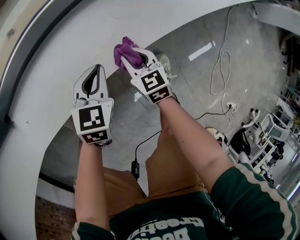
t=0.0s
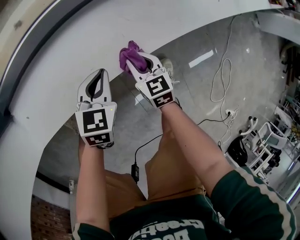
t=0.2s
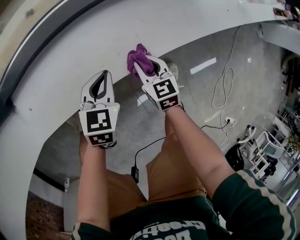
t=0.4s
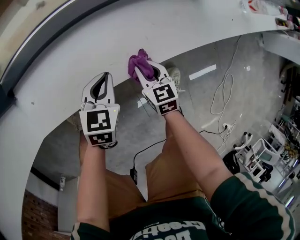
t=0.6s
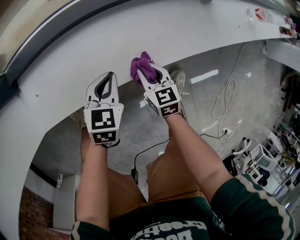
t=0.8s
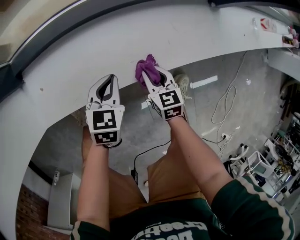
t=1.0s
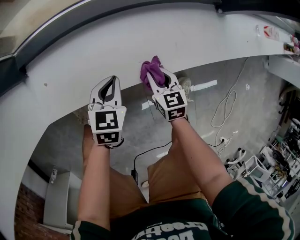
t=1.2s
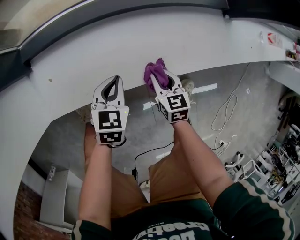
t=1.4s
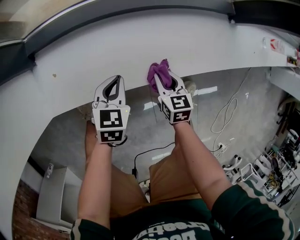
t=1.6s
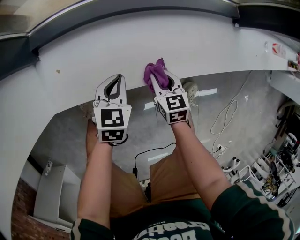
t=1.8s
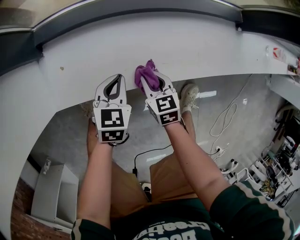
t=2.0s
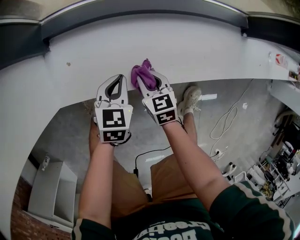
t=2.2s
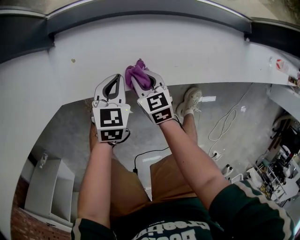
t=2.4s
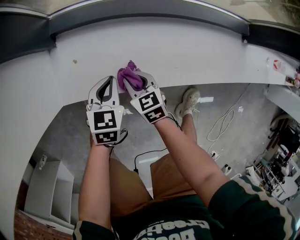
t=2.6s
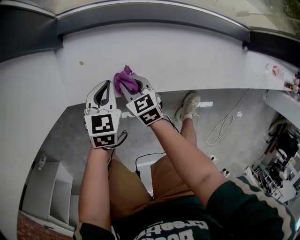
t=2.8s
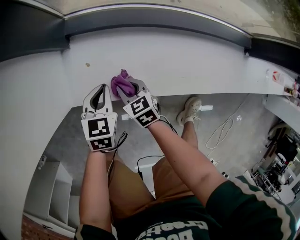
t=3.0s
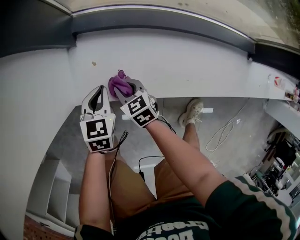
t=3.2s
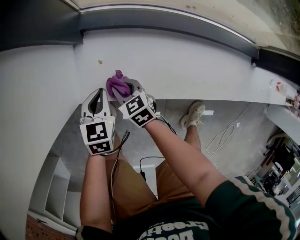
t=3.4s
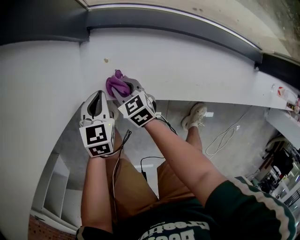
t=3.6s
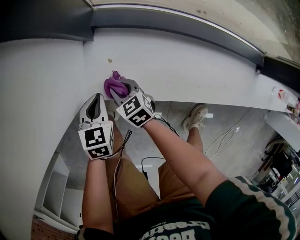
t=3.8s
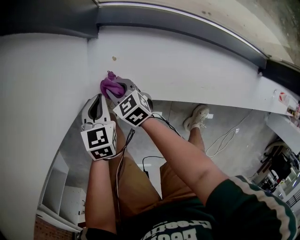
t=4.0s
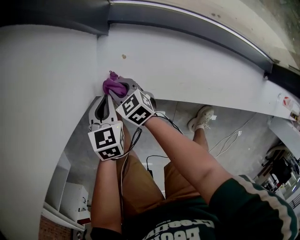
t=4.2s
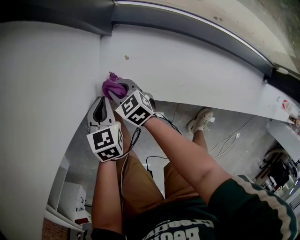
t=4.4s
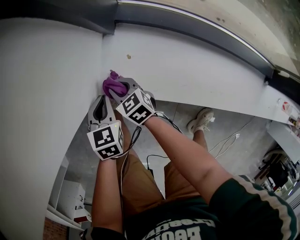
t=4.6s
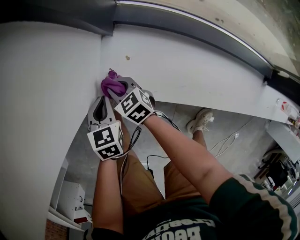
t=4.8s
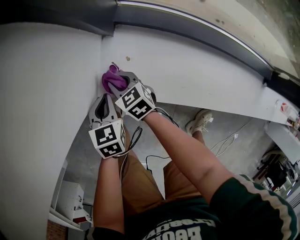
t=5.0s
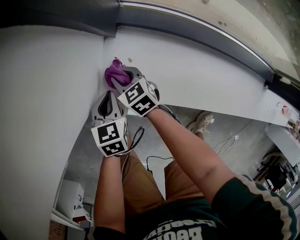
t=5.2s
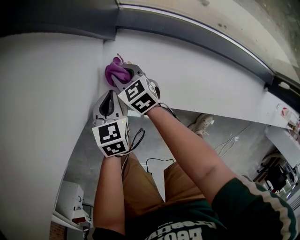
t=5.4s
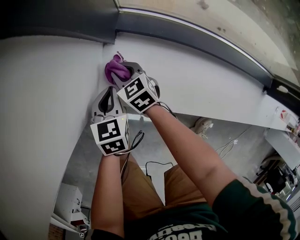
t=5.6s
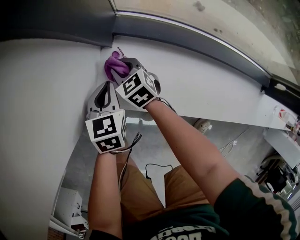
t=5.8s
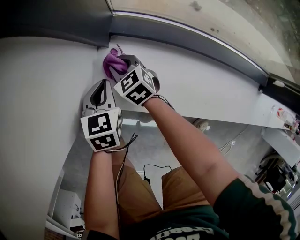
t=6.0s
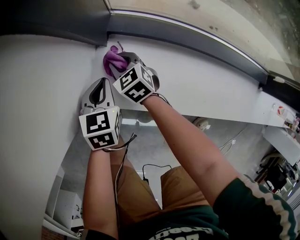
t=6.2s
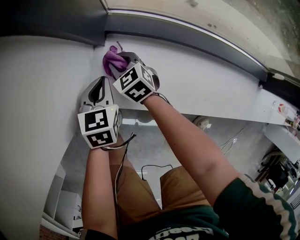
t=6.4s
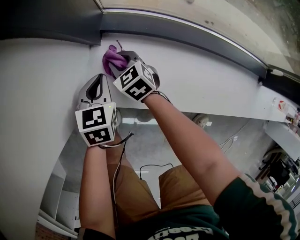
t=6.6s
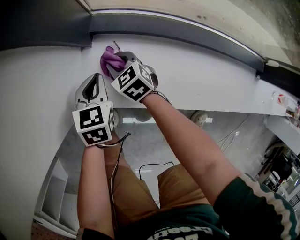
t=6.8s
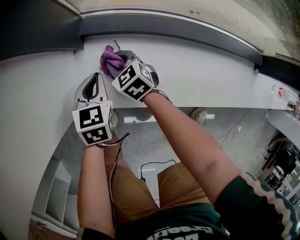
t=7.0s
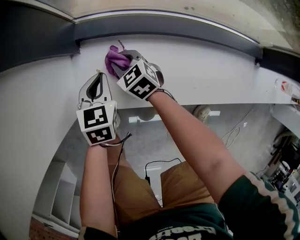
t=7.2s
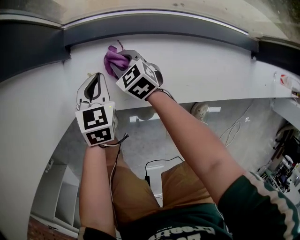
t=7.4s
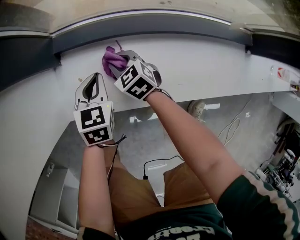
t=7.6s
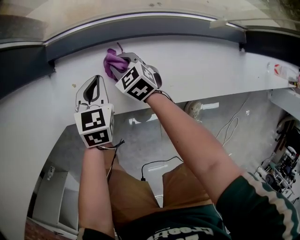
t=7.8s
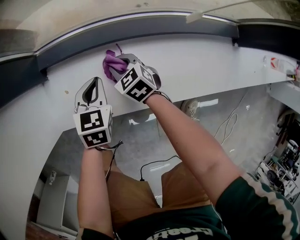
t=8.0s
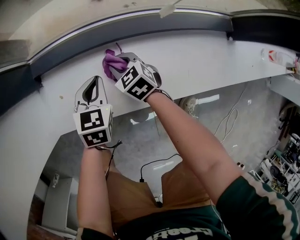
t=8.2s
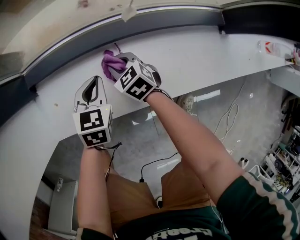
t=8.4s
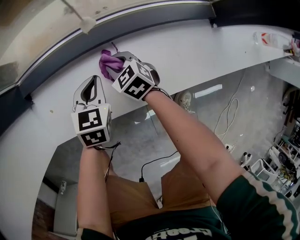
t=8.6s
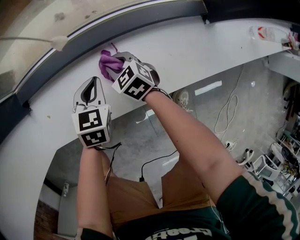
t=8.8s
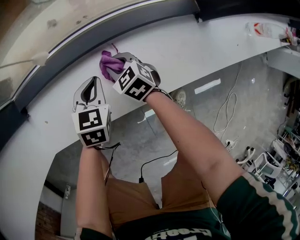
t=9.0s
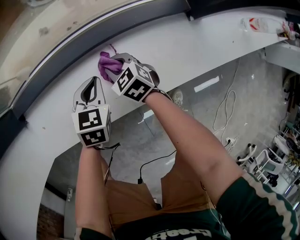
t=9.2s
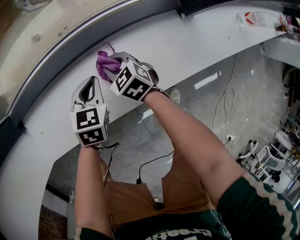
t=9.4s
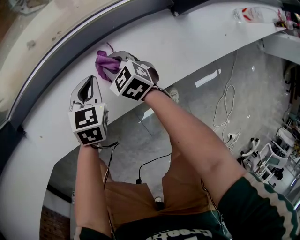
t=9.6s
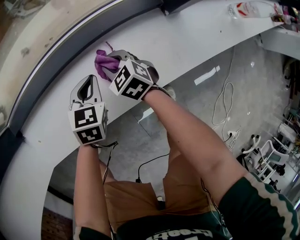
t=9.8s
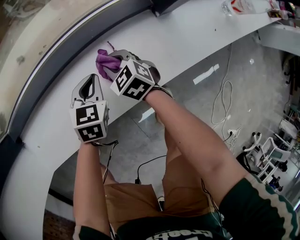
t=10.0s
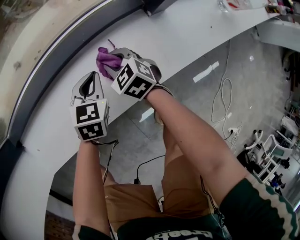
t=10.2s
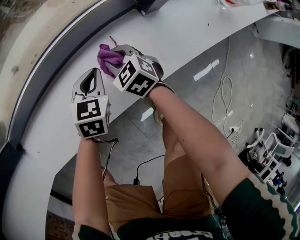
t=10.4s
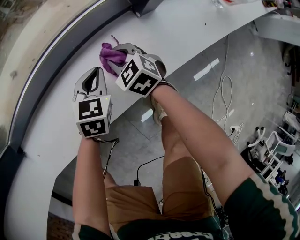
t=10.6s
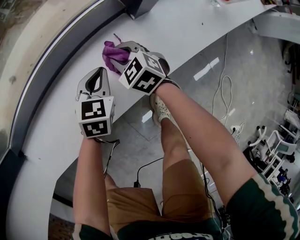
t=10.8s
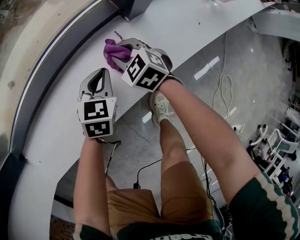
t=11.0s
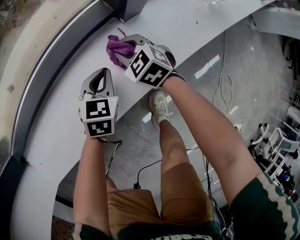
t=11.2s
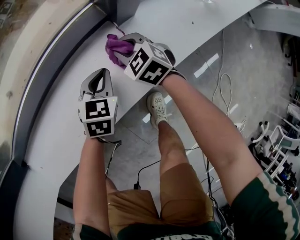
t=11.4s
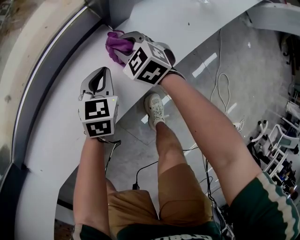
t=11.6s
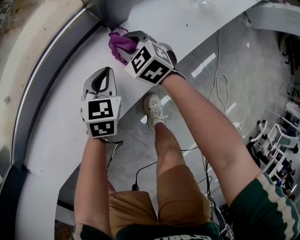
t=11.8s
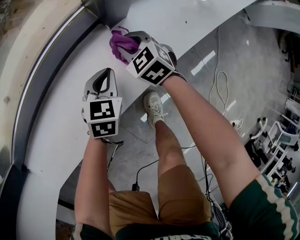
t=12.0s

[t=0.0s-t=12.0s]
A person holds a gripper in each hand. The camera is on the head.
t=0.0s to t=1.6s: Both grippers travel together to the left, roughly 15 cm.
t=1.6s to t=3.0s: The right gripper ends up roughly 30 cm from where it was, and changes its angle by roughly 30 degrees; the left gripper ends up about 20 cm from where it was.
t=3.0s to t=4.4s: The right gripper moves about 20 cm, and rotates about 20 degrees. Meanwhile the left gripper moves some 15 cm, and rotates some 20 degrees.
t=4.4s to t=6.0s: The left gripper moves to the right and forward, approximately 10 cm; the right gripper heads forward and to the right, covering roughly 15 cm.
t=6.0s to t=7.6s: The left gripper heads to the right, covering approximately 15 cm; the right gripper shifts approximately 20 cm to the right and backward.
t=7.6s to t=9.0s: The grippers both shift to the right by about 25 cm.
t=9.0s to t=10.4s: The two grippers go about 20 cm to the right.
t=10.4s to t=12.0s: The two grippers go roughly 15 cm to the right.

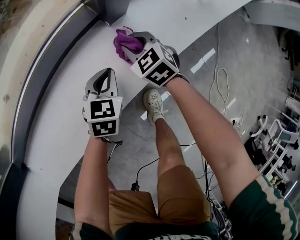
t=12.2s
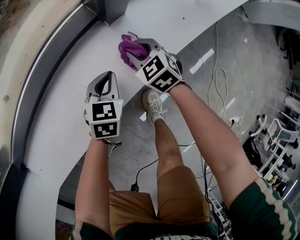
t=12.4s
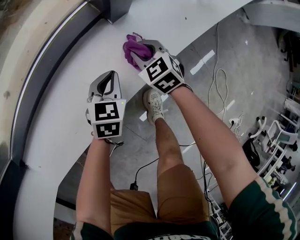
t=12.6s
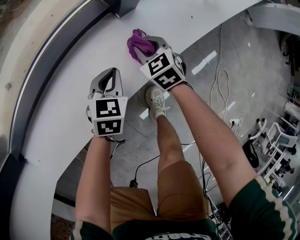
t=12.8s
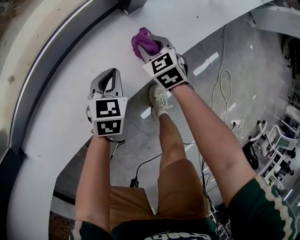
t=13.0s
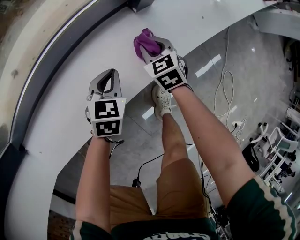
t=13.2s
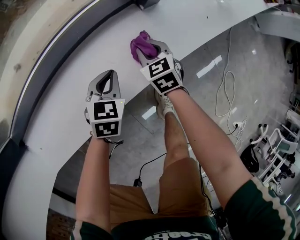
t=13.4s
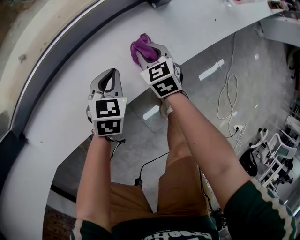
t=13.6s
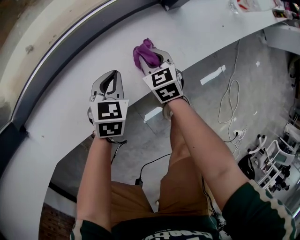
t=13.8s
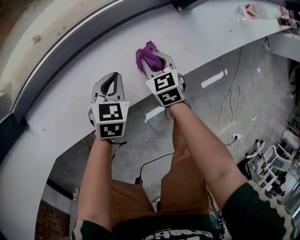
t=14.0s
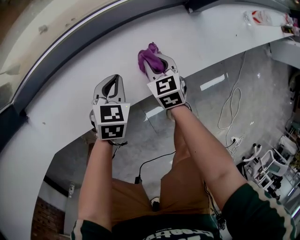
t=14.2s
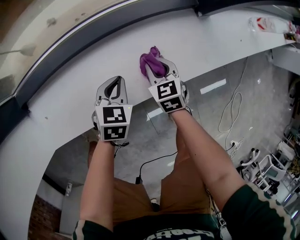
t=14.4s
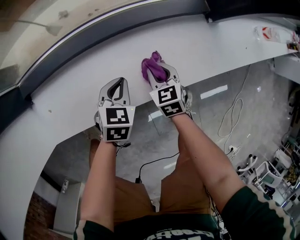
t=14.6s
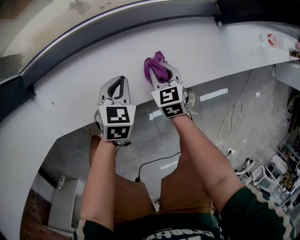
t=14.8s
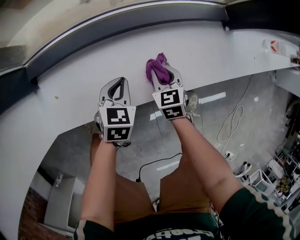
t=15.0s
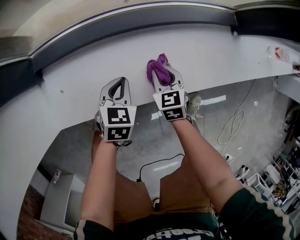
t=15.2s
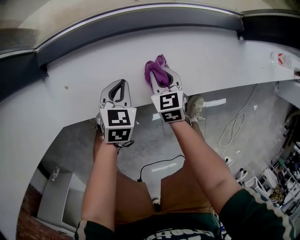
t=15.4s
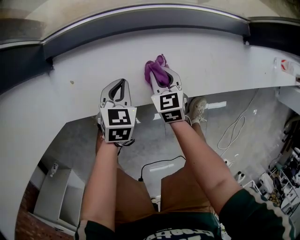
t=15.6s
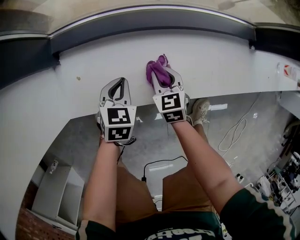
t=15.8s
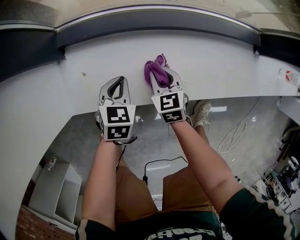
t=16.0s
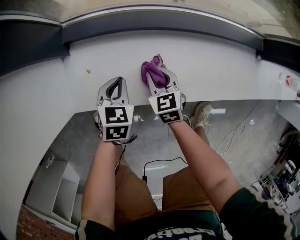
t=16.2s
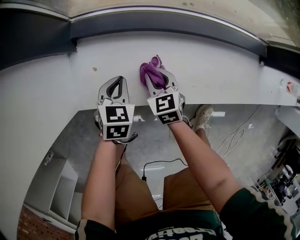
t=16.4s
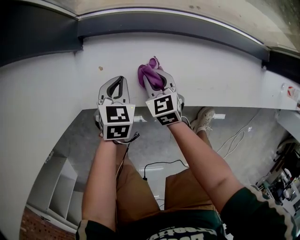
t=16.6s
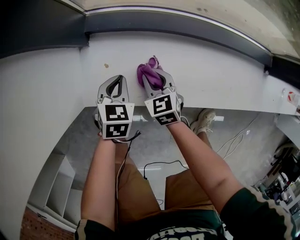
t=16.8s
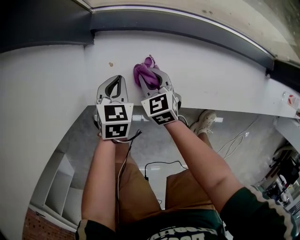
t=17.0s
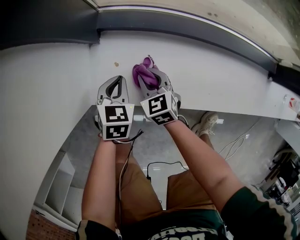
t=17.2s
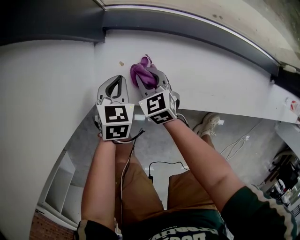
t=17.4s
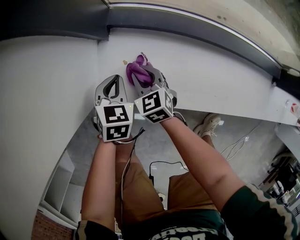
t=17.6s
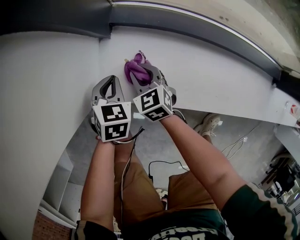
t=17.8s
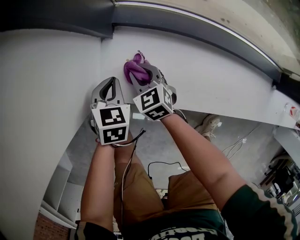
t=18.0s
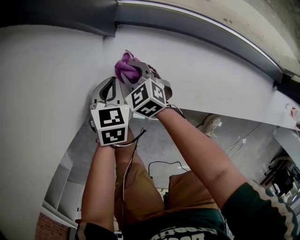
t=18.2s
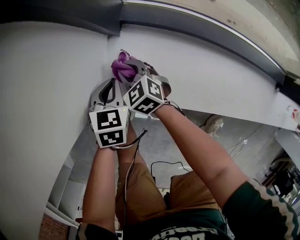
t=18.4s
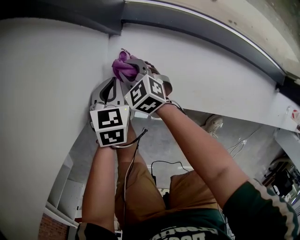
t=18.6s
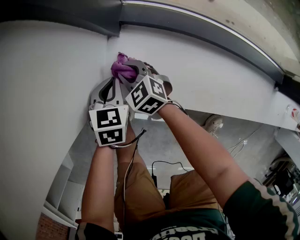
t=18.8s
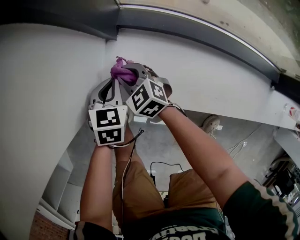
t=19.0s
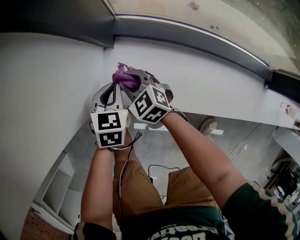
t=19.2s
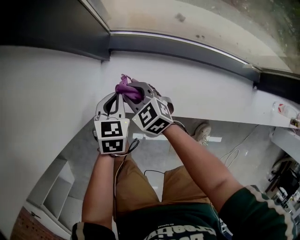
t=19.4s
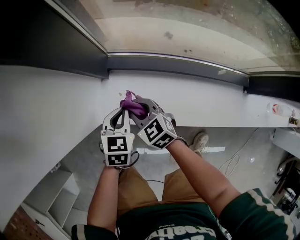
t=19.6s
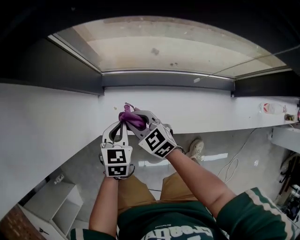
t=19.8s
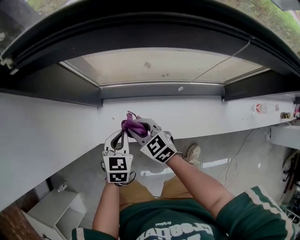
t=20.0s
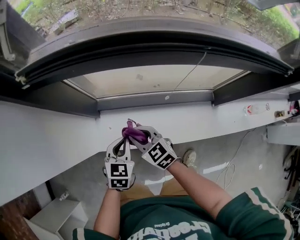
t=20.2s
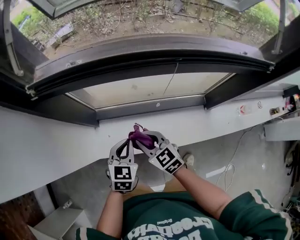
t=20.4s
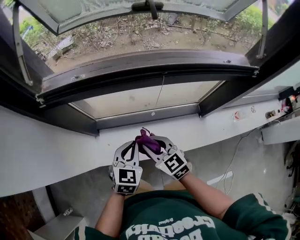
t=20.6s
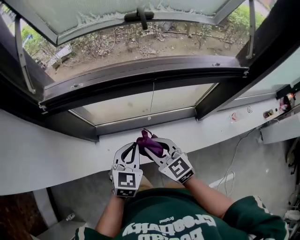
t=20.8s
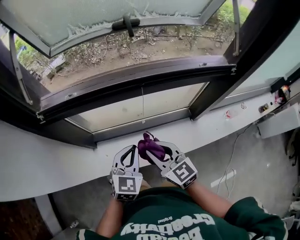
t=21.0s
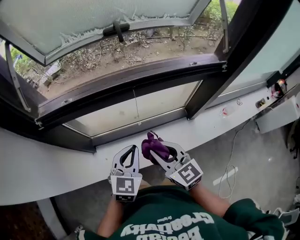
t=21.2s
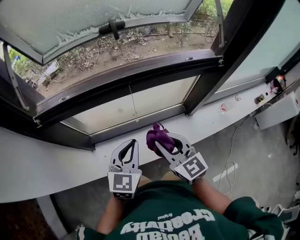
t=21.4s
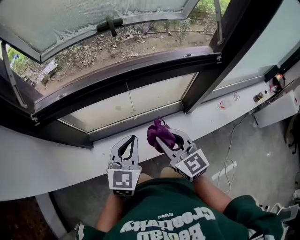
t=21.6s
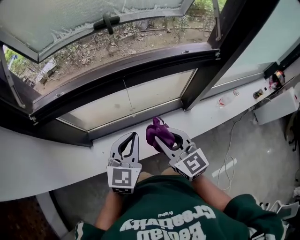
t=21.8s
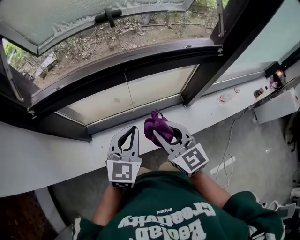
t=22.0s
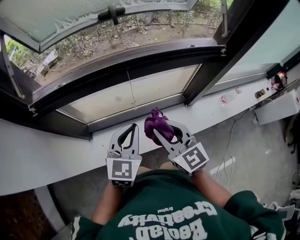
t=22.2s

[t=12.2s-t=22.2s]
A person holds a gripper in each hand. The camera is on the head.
t=12.2s to t=13.6s: The two grippers go some 15 cm to the left and backward.
t=13.6s to t=15.0s: The left gripper goes approximately 20 cm to the left; the right gripper travels to the left and backward by some 20 cm.
t=15.0s to t=16.4s: Both grippers travel together to the left, about 20 cm.
t=16.4s to t=18.0s: The grippers both shift to the left by some 15 cm. The right gripper rotates about 20 degrees.
t=18.0s to t=19.4s: Both grippers travel together upward, roughly 10 cm.
t=19.4s to t=20.8s: The grippers both shift upward and to the right by some 50 cm. The right gripper turns by roughly 30 degrees. Meanwhile the left gripper turns by approximately 30 degrees.
t=20.8s to t=22.2s: The right gripper moves to the right and upward, some 15 cm. The left gripper heads upward and to the right, covering roughly 10 cm.

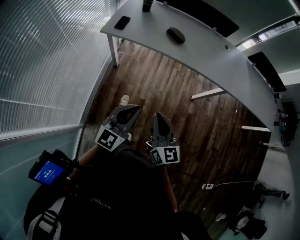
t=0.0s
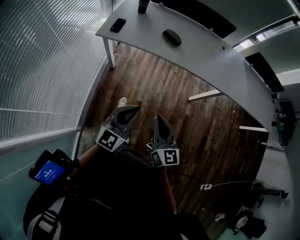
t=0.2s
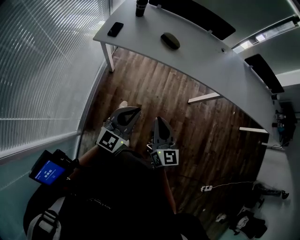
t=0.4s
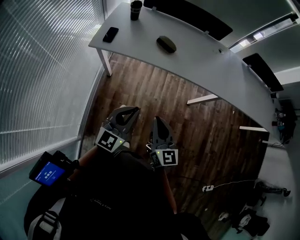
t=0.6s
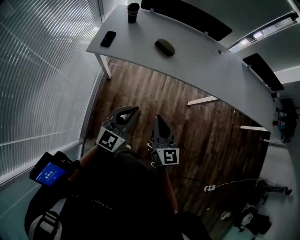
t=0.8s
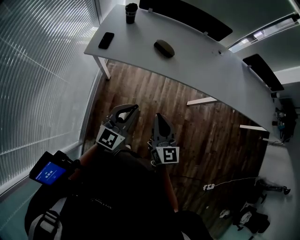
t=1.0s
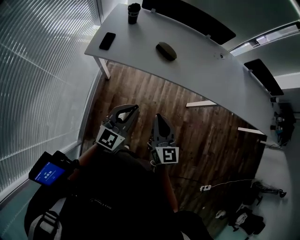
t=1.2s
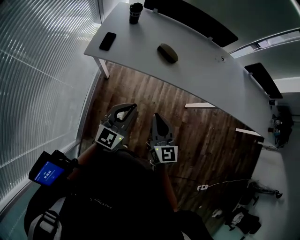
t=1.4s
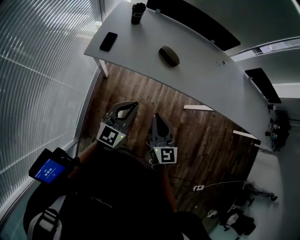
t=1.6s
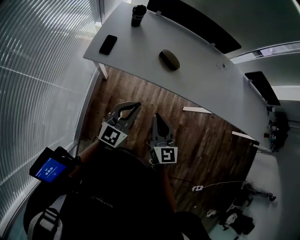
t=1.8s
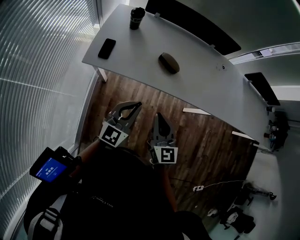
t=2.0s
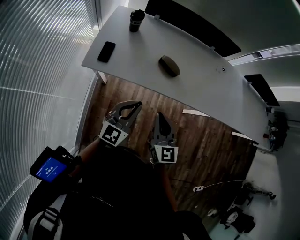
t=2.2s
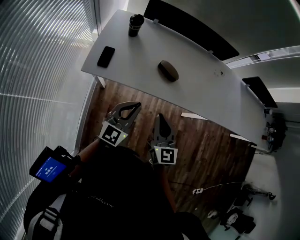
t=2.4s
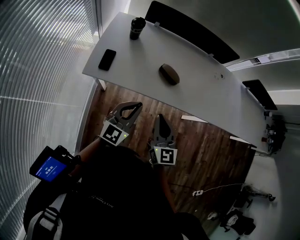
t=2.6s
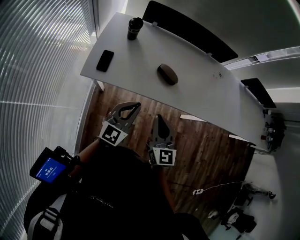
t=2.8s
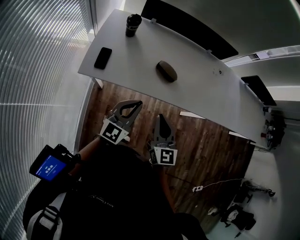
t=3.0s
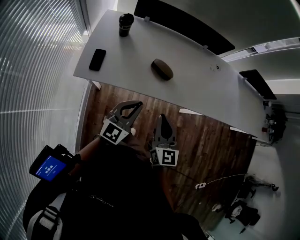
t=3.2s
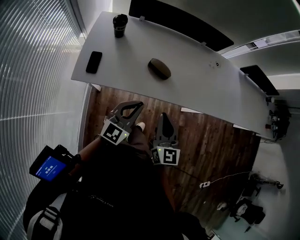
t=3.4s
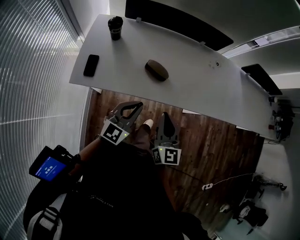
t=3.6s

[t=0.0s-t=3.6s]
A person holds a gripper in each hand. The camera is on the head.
t=0.0s to t=1.8s: The two grippers go approximately 30 cm forward.
t=1.8s to t=3.6s: The left gripper goes some 10 cm forward. The right gripper moves forward and to the right, some 15 cm.
